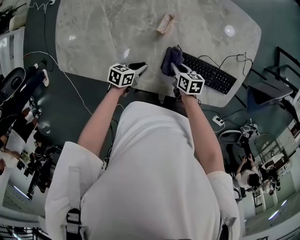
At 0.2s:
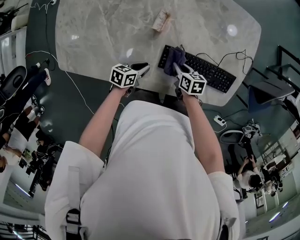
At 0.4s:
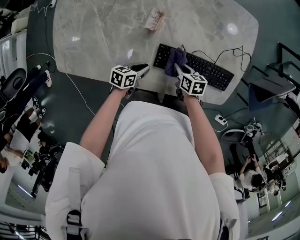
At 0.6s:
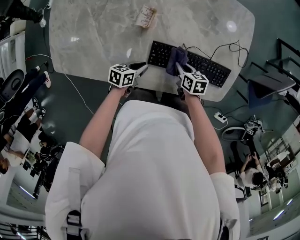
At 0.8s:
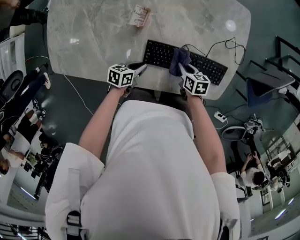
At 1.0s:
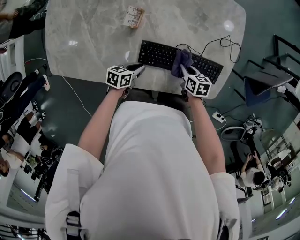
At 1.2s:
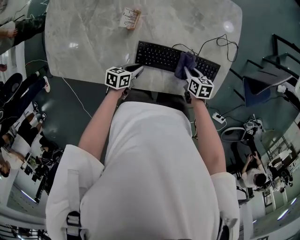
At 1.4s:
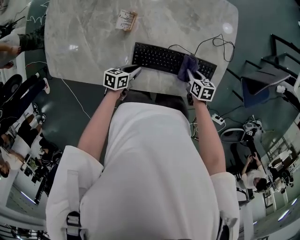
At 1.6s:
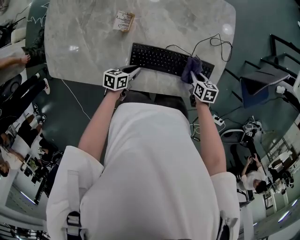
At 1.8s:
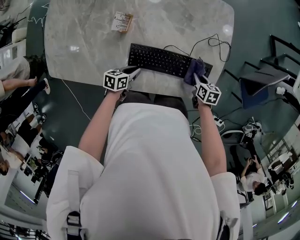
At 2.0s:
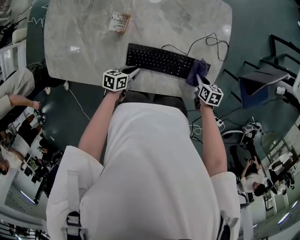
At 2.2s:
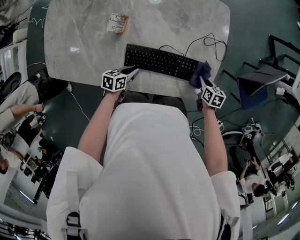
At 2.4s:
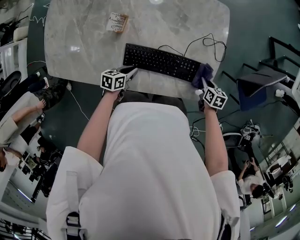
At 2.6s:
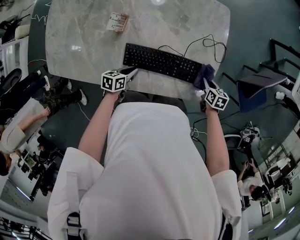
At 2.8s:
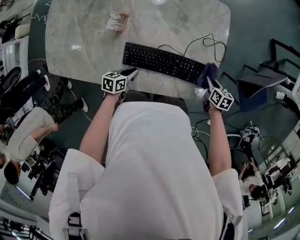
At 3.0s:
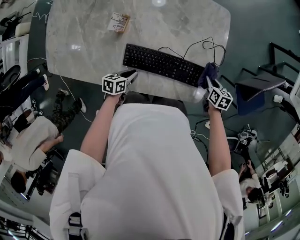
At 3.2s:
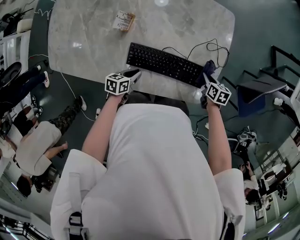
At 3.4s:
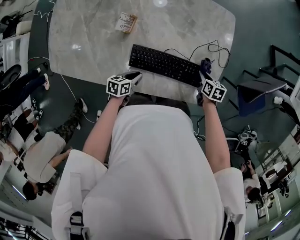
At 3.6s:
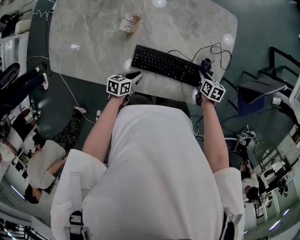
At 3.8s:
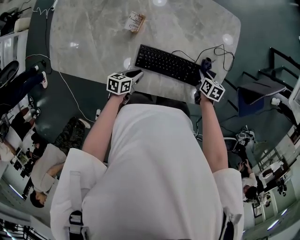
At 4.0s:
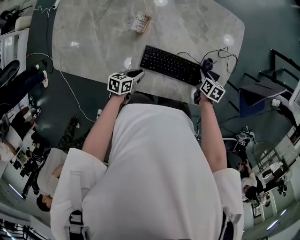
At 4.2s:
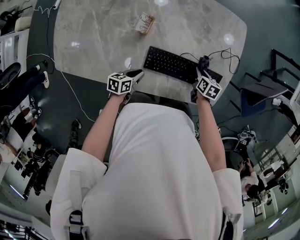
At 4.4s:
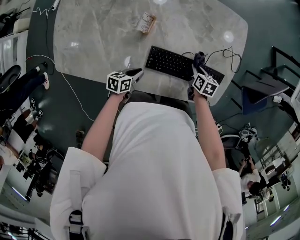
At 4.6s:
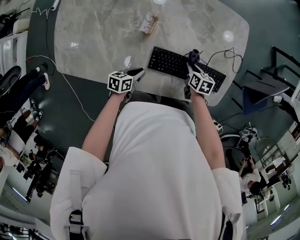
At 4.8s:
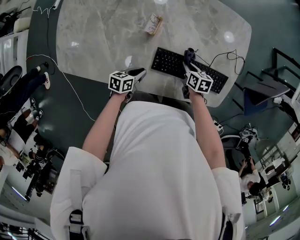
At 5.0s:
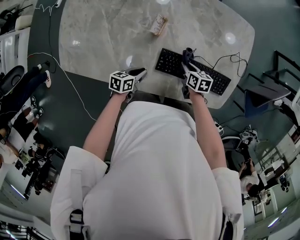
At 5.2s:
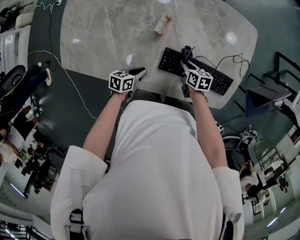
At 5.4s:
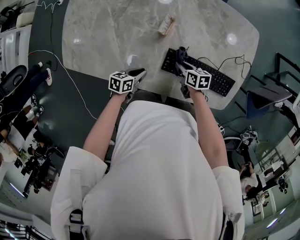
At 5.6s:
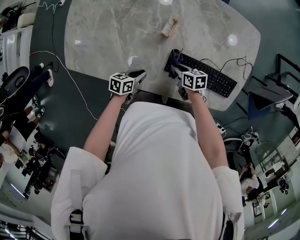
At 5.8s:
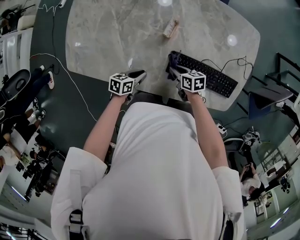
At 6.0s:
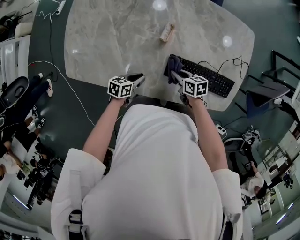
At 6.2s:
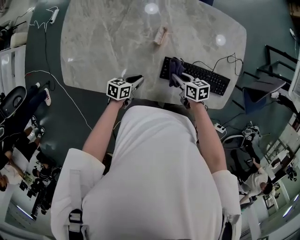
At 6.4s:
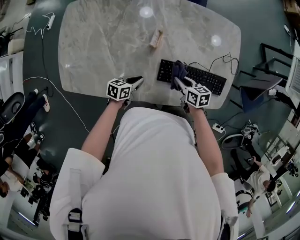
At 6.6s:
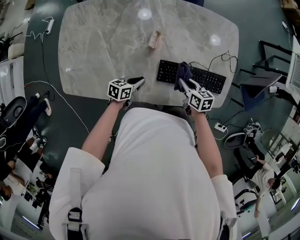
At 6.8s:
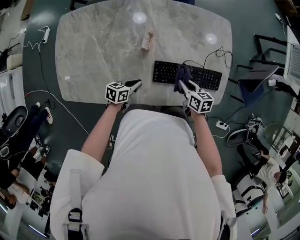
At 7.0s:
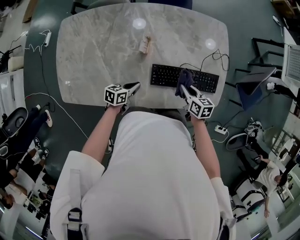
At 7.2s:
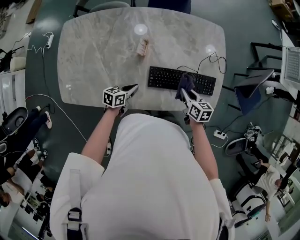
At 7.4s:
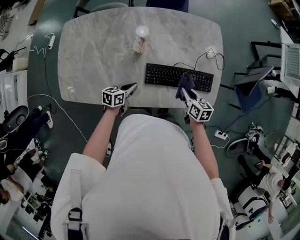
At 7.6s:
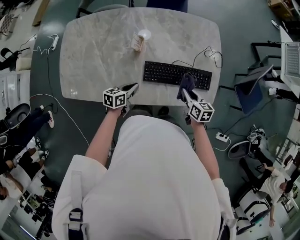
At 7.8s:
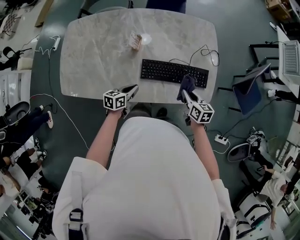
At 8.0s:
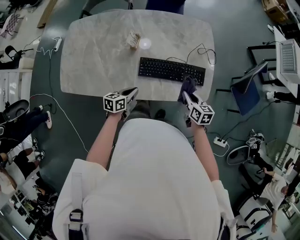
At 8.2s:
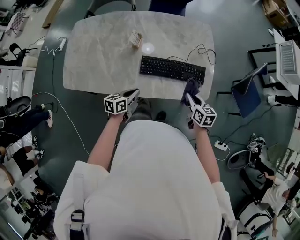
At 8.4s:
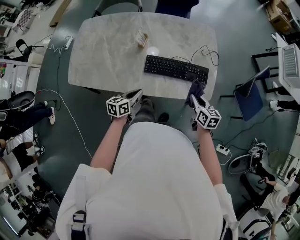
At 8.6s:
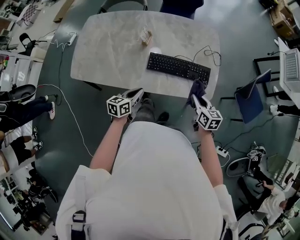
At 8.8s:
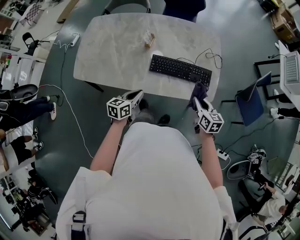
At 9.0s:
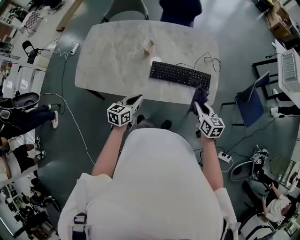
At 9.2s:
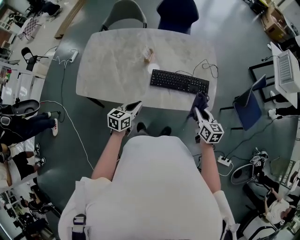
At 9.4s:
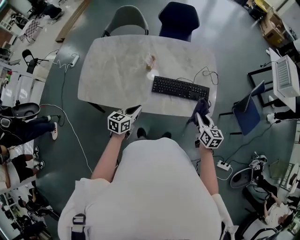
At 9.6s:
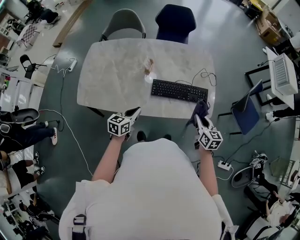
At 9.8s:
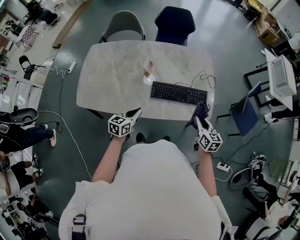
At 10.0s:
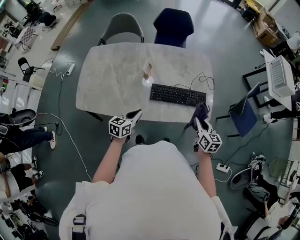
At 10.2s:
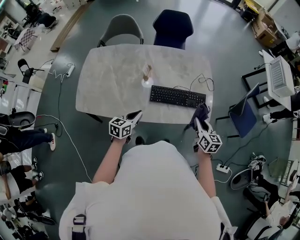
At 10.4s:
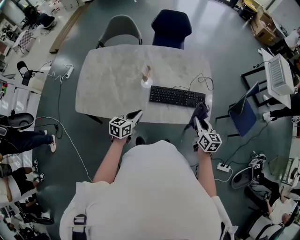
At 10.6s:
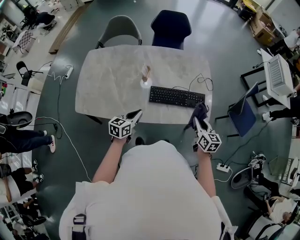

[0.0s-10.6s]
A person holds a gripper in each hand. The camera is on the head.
0.0s to 1.6s: The left gripper goes roughly 15 cm to the right; the right gripper goes about 30 cm to the right.
1.6s to 3.0s: The right gripper shifts some 10 cm to the right.
3.0s to 4.6s: The right gripper travels to the left by approximately 25 cm. Meanwhile the left gripper moves to the left, roughly 10 cm.
4.6s to 6.0s: The right gripper moves roughly 15 cm, and changes its angle by some 20 degrees. Meanwhile the left gripper changes place by about 10 cm.
6.0s to 7.6s: The left gripper moves some 10 cm, while the right gripper ends up some 25 cm from where it was, and swivels roughly 30 degrees.
7.6s to 9.0s: The left gripper moves backward and upward, roughly 20 cm, and rotates some 20 degrees. The right gripper is displaced backward, upward and to the right by some 15 cm.
9.0s to 10.6s: The left gripper changes place by about 5 cm.

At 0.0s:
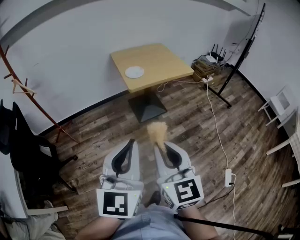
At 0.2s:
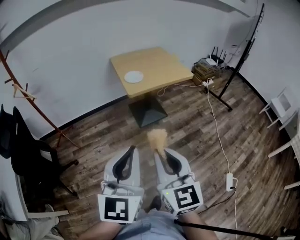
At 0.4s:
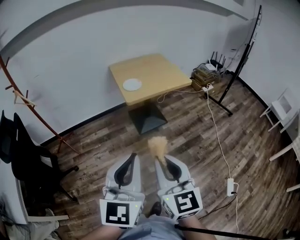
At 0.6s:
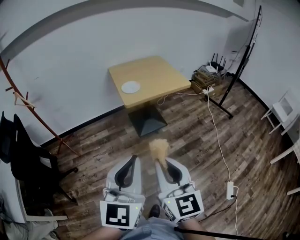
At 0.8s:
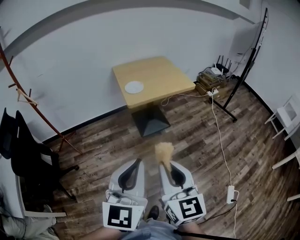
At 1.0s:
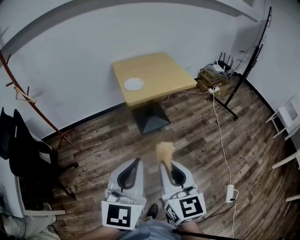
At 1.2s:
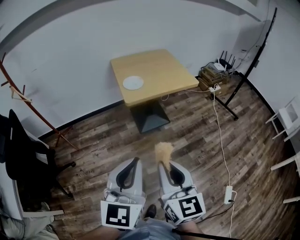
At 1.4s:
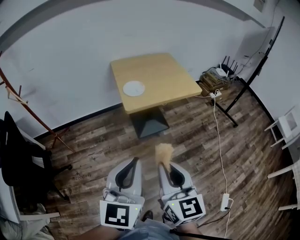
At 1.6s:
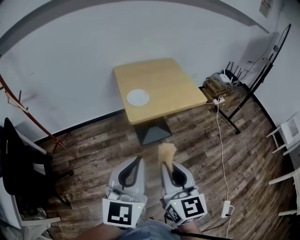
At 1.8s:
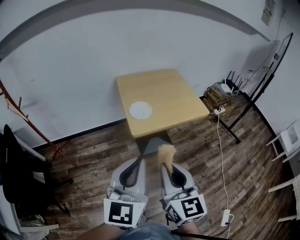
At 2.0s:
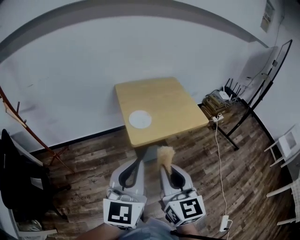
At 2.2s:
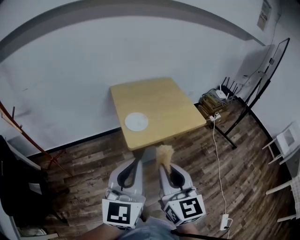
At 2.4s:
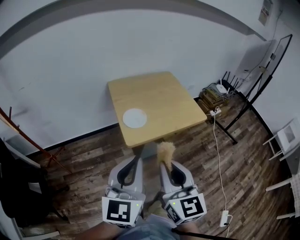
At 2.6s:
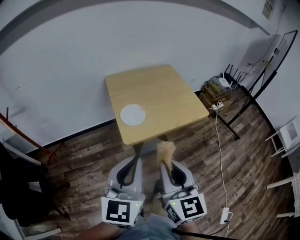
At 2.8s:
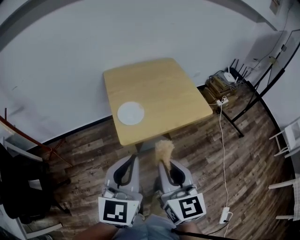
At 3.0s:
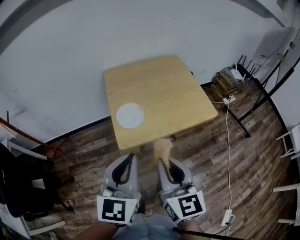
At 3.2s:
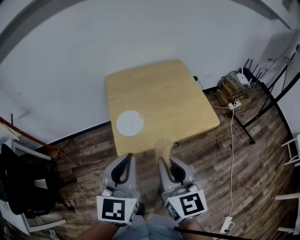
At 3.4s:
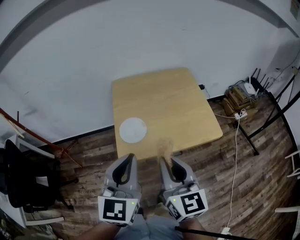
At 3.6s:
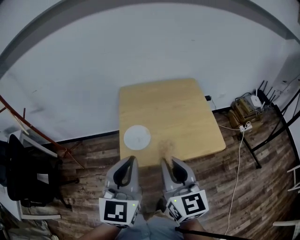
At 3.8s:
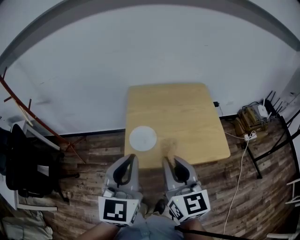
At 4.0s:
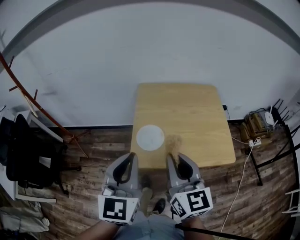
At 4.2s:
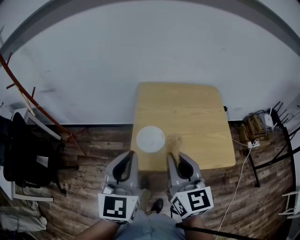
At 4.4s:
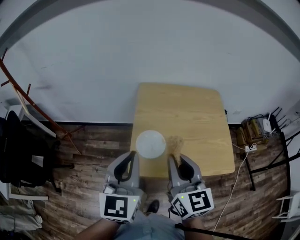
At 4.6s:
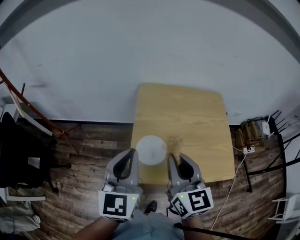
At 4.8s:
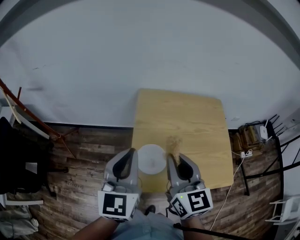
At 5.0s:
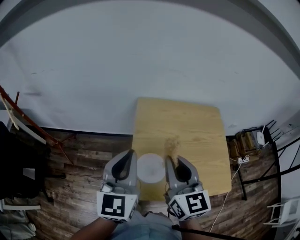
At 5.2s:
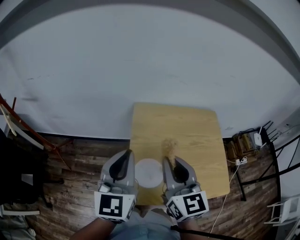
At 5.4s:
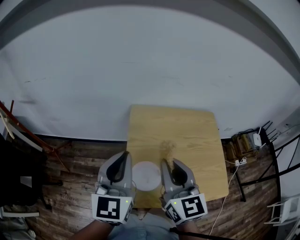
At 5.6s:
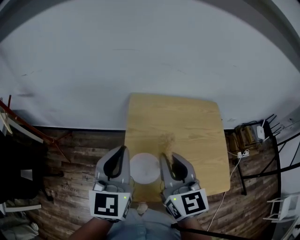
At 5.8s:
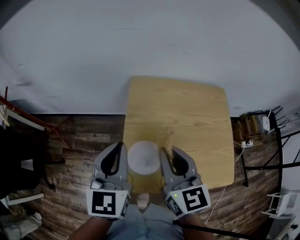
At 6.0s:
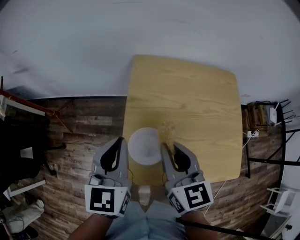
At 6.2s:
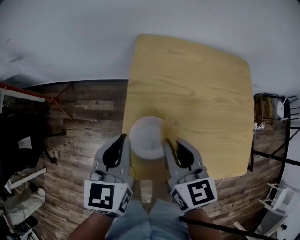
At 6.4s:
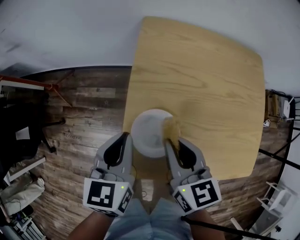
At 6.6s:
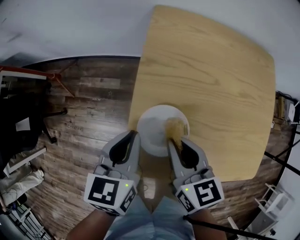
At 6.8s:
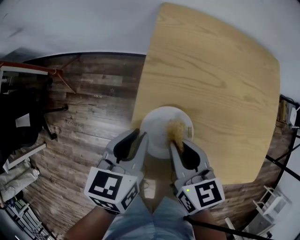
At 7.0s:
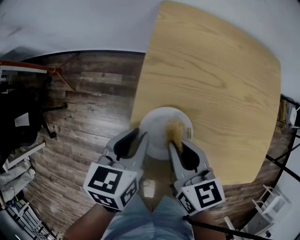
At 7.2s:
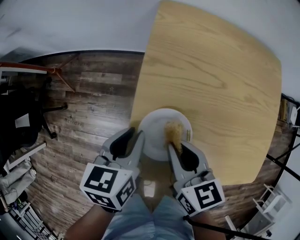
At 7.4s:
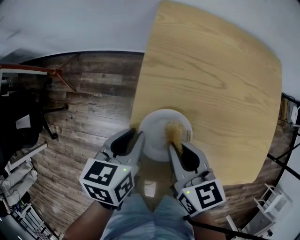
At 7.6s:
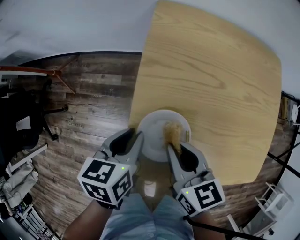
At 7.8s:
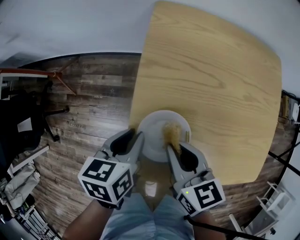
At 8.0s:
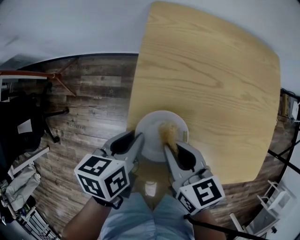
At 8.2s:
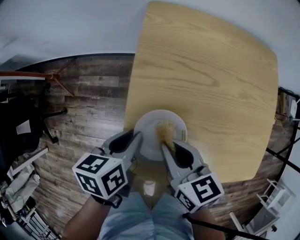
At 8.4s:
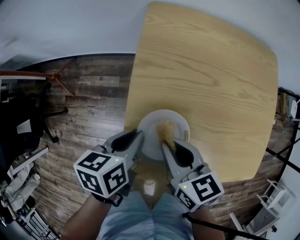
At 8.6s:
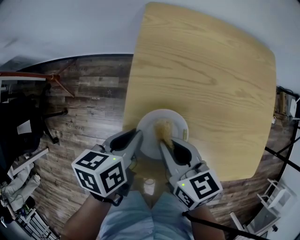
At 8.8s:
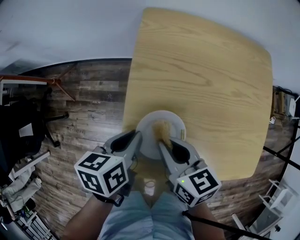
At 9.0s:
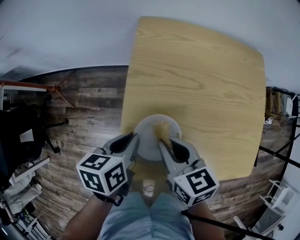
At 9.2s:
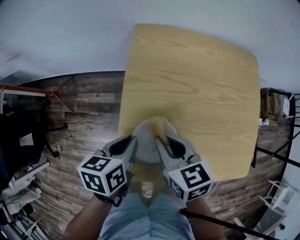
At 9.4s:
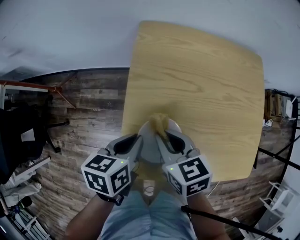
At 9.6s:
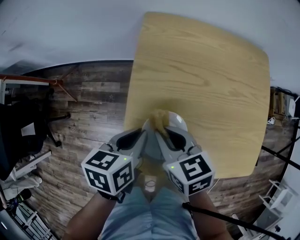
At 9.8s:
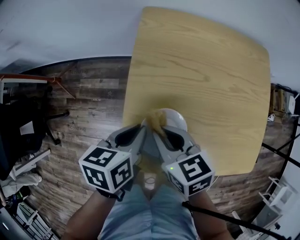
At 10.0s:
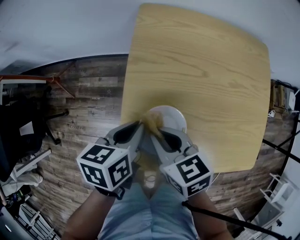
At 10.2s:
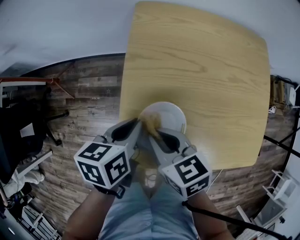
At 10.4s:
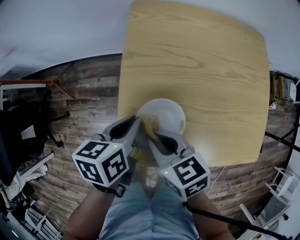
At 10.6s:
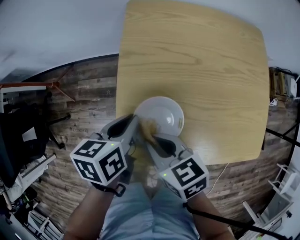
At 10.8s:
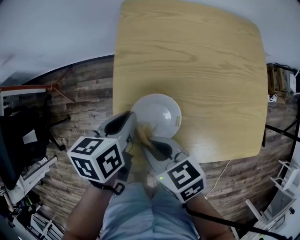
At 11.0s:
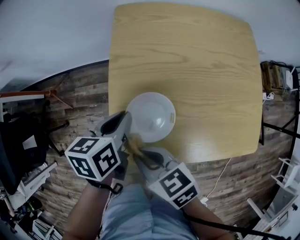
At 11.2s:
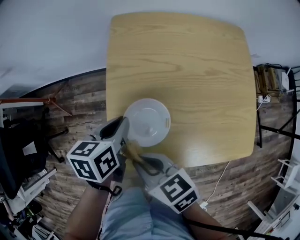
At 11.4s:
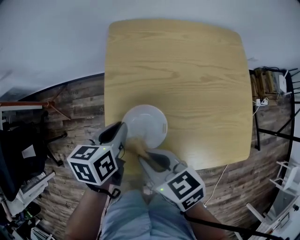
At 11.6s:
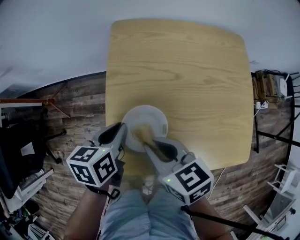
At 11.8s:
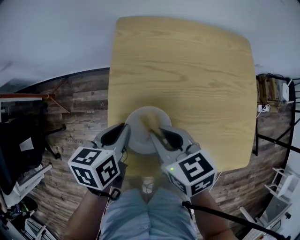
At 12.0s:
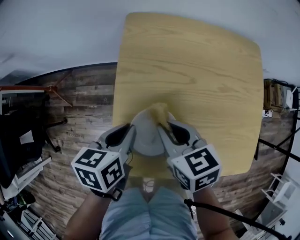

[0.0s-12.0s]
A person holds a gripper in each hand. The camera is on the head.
0.0s to 1.6s: The two grippers go about 20 cm forward.
1.6s to 3.0s: The two grippers go about 20 cm forward.
3.0s to 4.4s: The two grippers go about 15 cm forward. The left gripper swivels some 20 degrees.
4.4s to 6.0s: The grippers both shift forward and downward by approximately 15 cm.
6.0s to 7.6s: The grippers both shift downward by roughly 15 cm. The right gripper turns by some 20 degrees, while the left gripper changes its angle by about 40 degrees, and opens.
7.6s to 9.0s: The grippers stay close to where they were, moving slightly.
9.0s to 10.4s: The right gripper shifts by about 5 cm.
10.4s to 12.0s: The right gripper heads to the right and forward, covering approximately 10 cm.

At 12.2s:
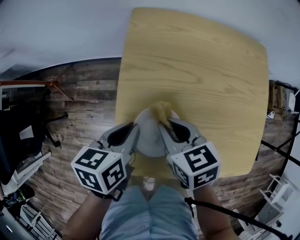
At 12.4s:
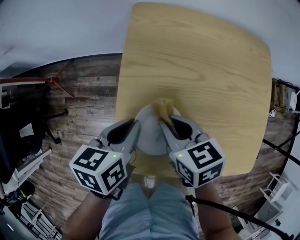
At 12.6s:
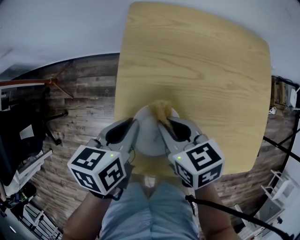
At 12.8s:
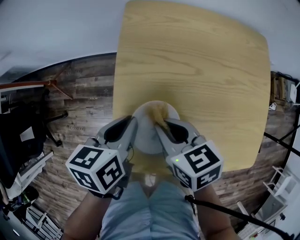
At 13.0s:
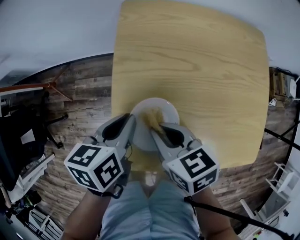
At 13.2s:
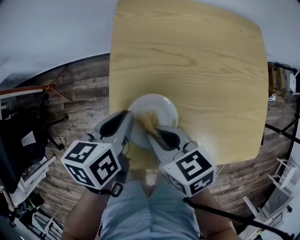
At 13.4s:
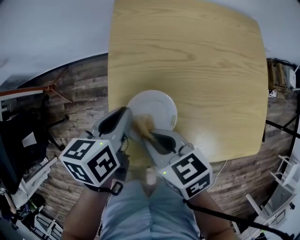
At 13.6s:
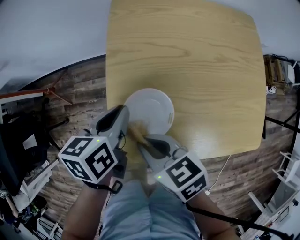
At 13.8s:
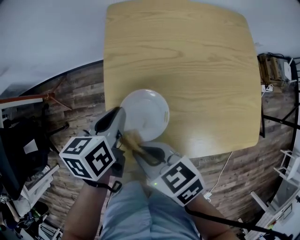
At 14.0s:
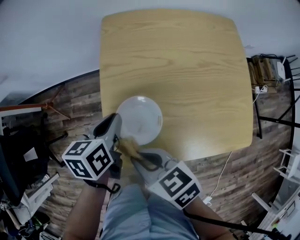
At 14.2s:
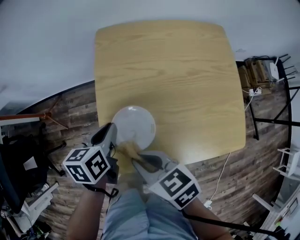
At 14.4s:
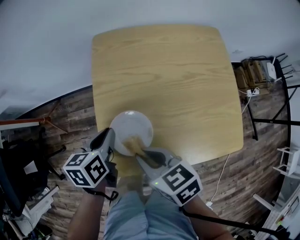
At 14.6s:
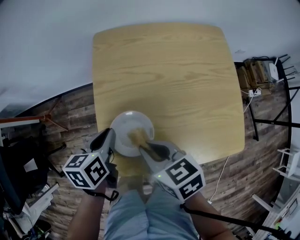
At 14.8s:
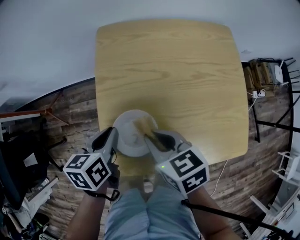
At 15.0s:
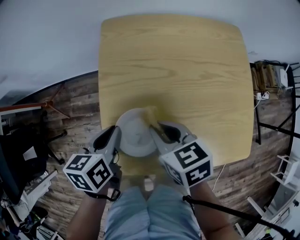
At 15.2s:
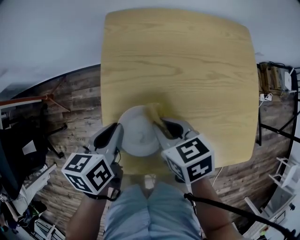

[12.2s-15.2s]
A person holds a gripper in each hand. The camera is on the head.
12.2s to 13.8s: The right gripper shifts roughly 15 cm backward and to the left.
13.8s to 15.2s: The right gripper shifts roughly 15 cm to the right and forward.
